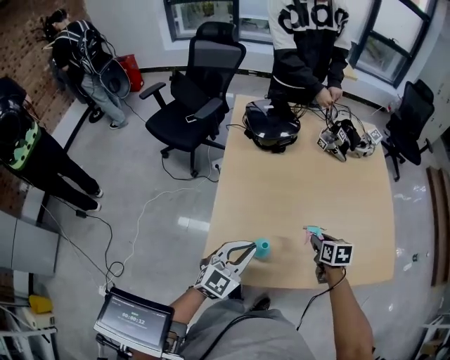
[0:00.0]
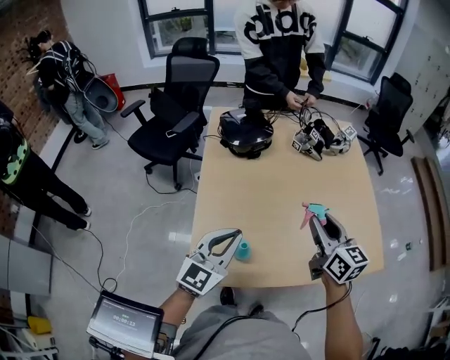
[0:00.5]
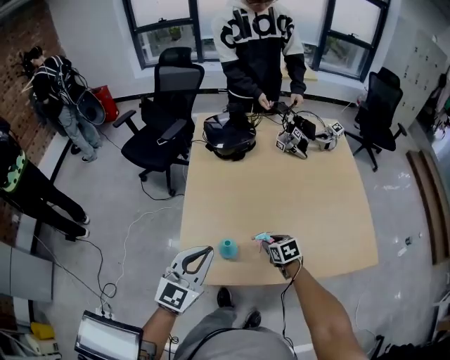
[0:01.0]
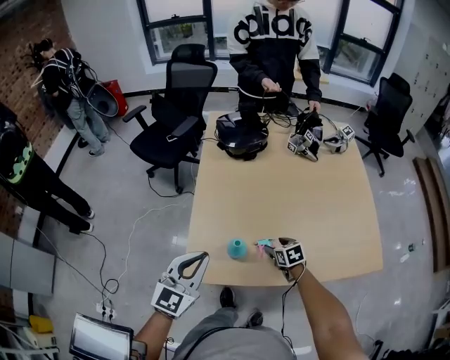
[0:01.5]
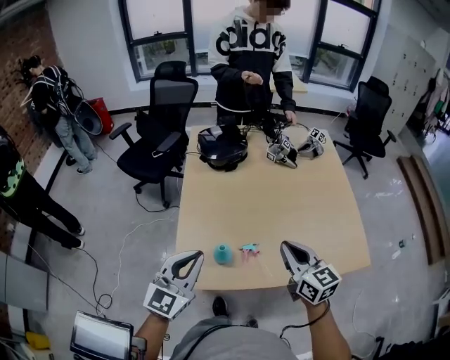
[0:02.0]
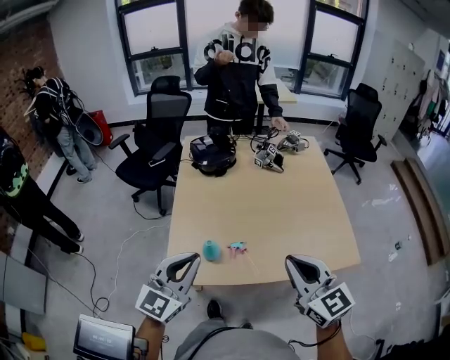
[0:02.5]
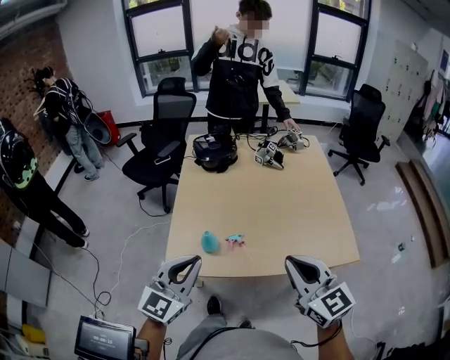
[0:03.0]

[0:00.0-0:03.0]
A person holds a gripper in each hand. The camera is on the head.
0:00.0 to 0:01.5: The left gripper is displaced upward and backward by about 15 cm; the right gripper goes approximately 10 cm to the left and backward, travels upward and back again, about 25 cm each way, and opens up.
0:01.5 to 0:03.0: The left gripper travels backward, to the right and upward by approximately 20 cm. Meanwhile the right gripper moves upward and backward, some 50 cm, points its fingers about 50 degrees further upward, and closes.

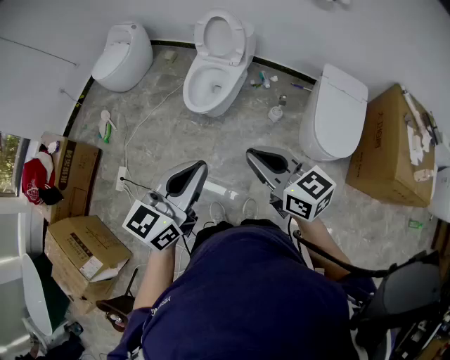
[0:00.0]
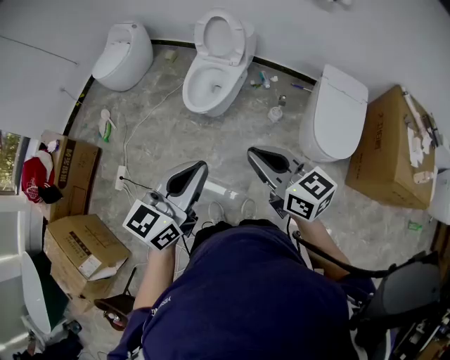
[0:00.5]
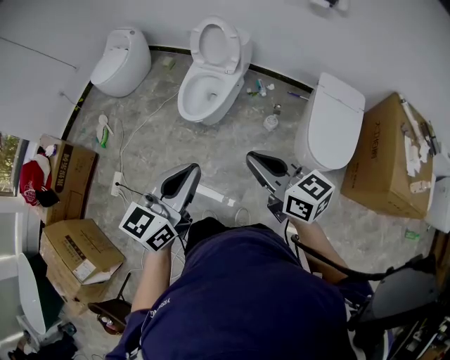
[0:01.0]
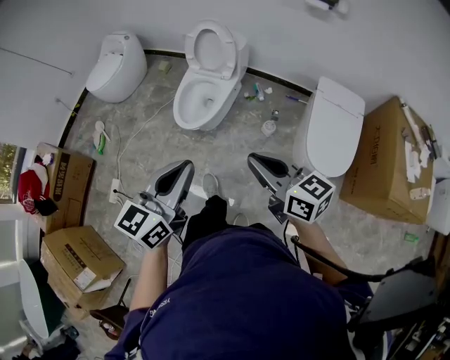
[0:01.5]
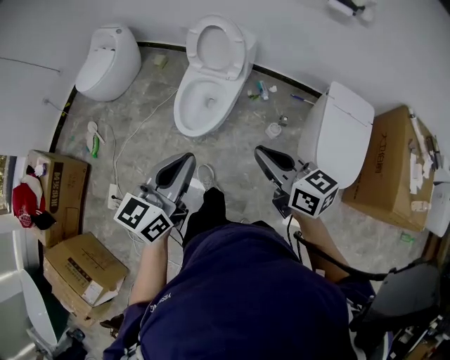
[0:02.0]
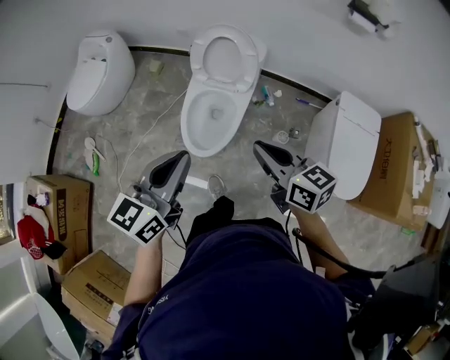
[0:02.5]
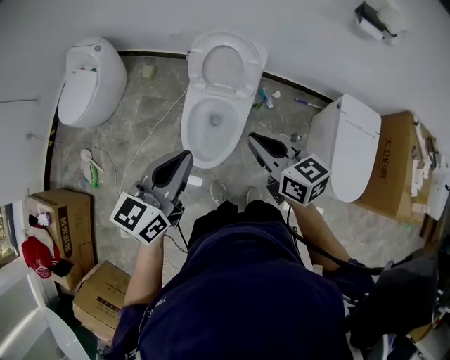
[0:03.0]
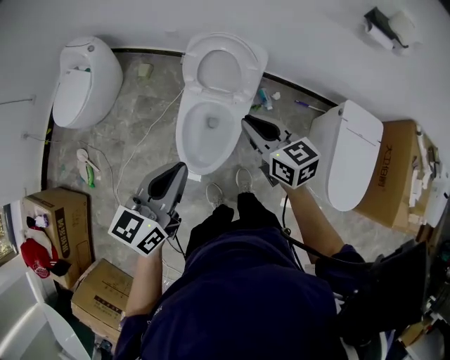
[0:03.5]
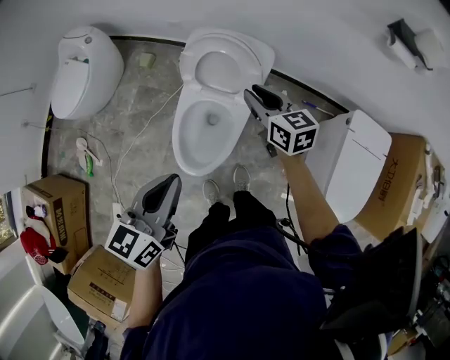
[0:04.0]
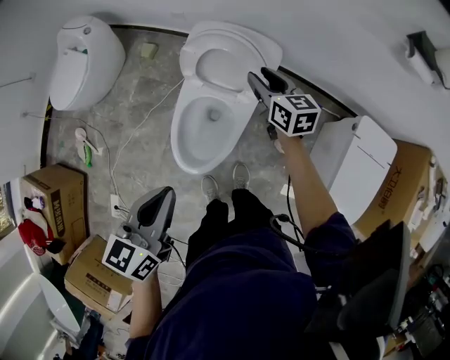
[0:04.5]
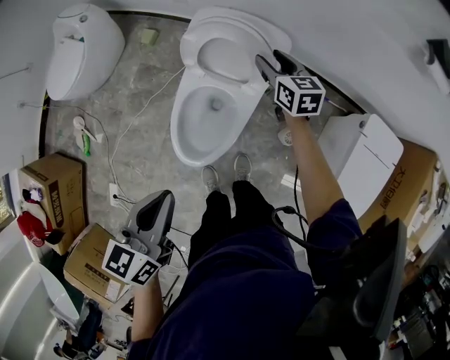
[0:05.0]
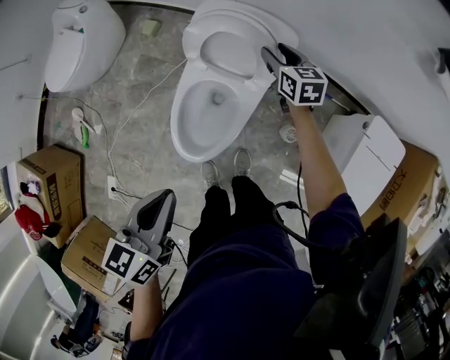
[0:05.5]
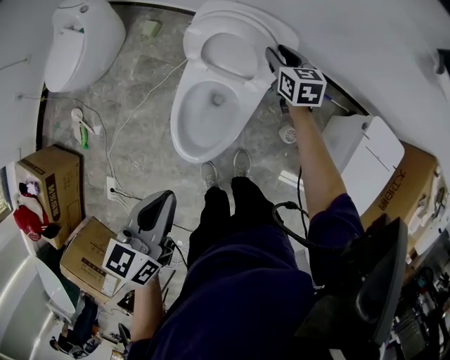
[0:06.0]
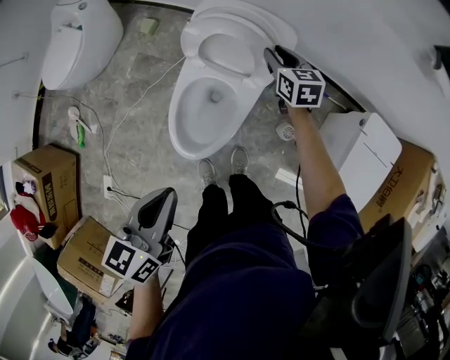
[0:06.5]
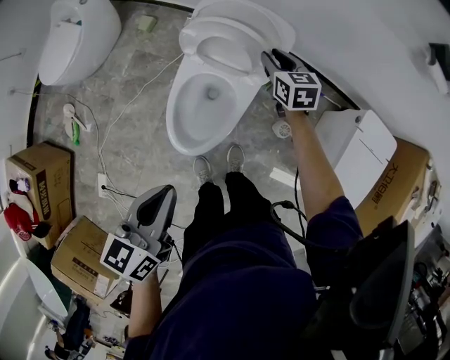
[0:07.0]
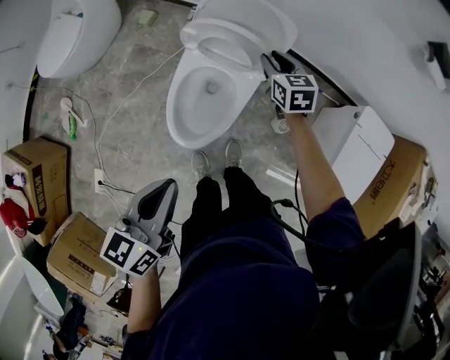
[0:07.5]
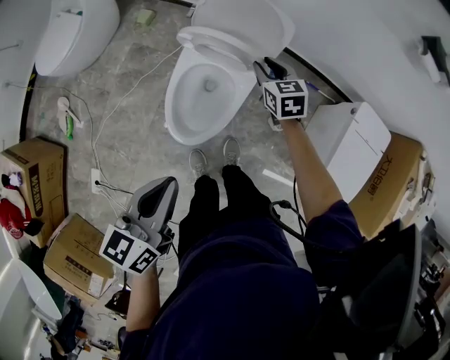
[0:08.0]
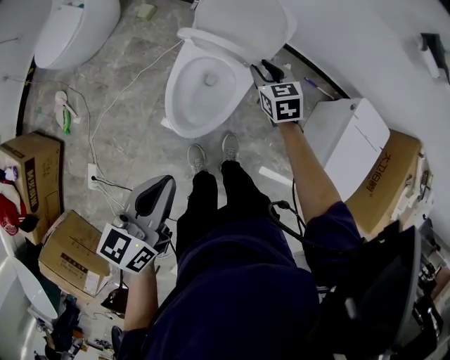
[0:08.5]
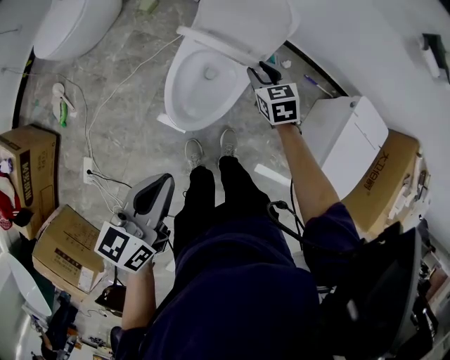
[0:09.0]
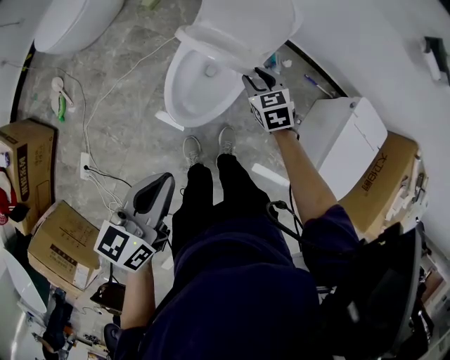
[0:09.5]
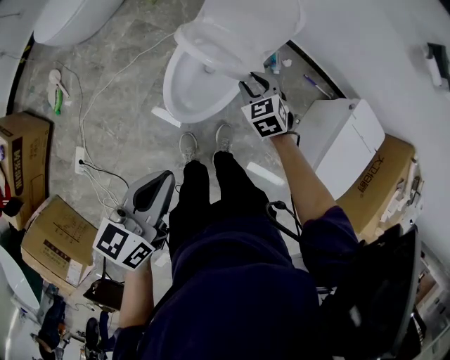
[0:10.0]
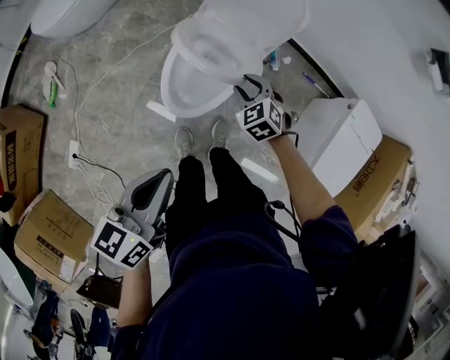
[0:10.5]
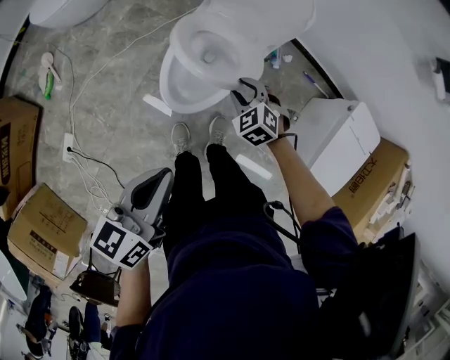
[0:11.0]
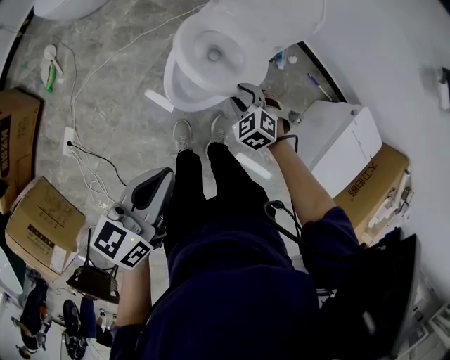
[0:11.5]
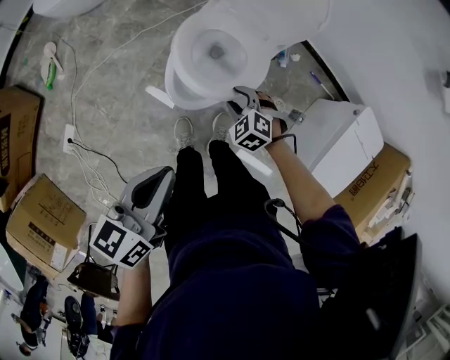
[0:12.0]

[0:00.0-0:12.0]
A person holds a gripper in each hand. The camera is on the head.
0:00.0 to 0:02.0: The grippers both shift forward by about 25 cm.
0:02.0 to 0:04.0: The right gripper moves forward, roughly 50 cm. Meanwhile the left gripper goes approximately 35 cm forward.
0:04.0 to 0:06.0: The right gripper goes roughly 20 cm forward and downward. Meanwhile the left gripper shifts some 5 cm downward.
0:06.0 to 0:08.0: The right gripper moves backward, approximately 15 cm. Meanwhile the left gripper goes approximately 5 cm backward.
0:08.0 to 0:10.0: The left gripper heads backward, covering some 10 cm; the right gripper shifts some 15 cm backward, and rotates some 30 degrees.
0:10.0 to 0:12.0: The right gripper heads backward, downward and to the left, covering about 15 cm, and rotates approximately 30 degrees.

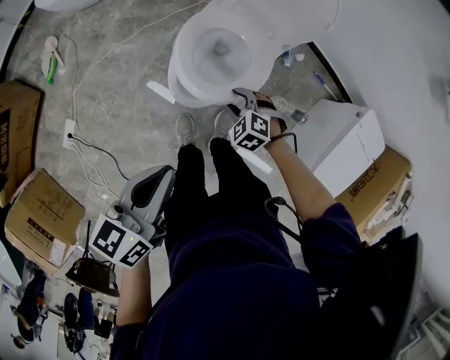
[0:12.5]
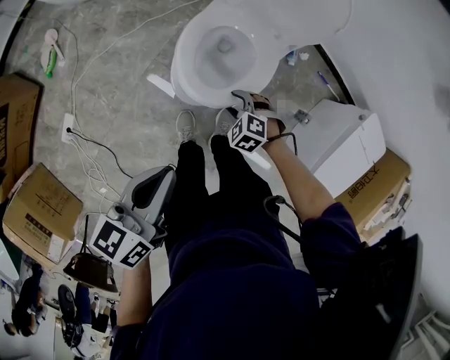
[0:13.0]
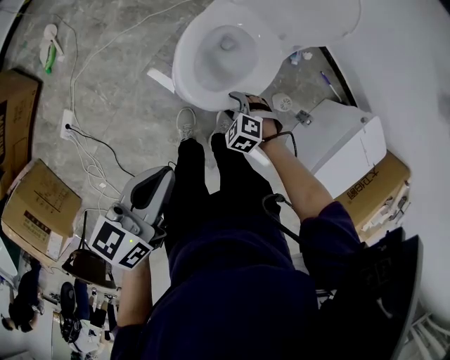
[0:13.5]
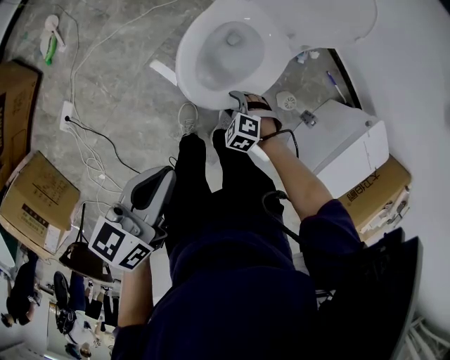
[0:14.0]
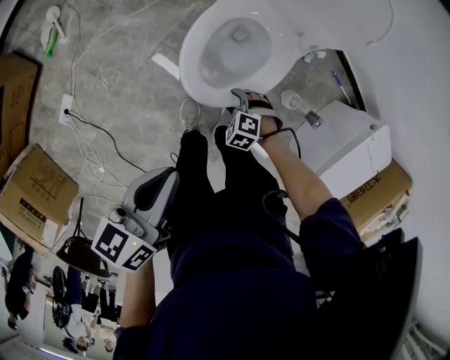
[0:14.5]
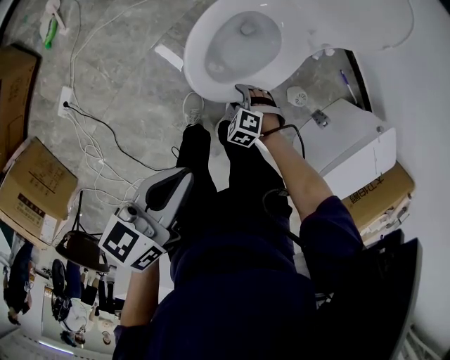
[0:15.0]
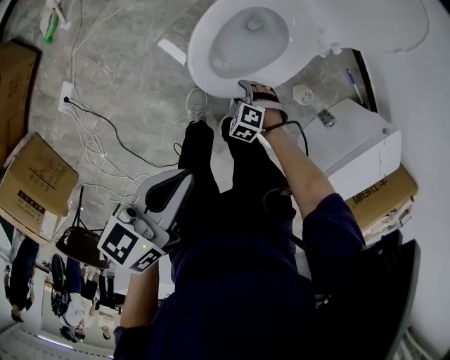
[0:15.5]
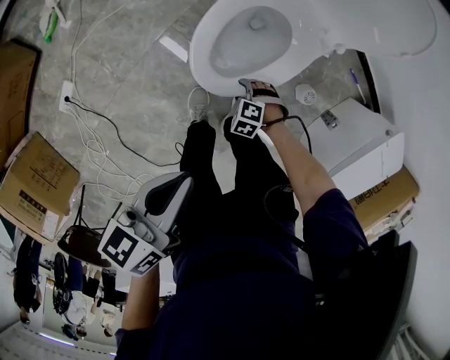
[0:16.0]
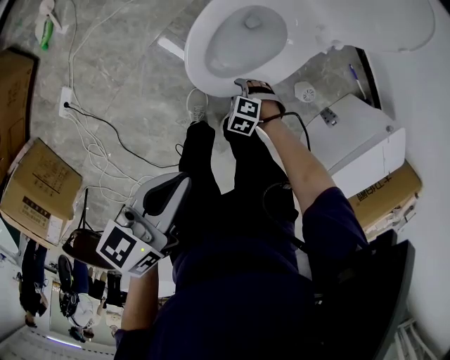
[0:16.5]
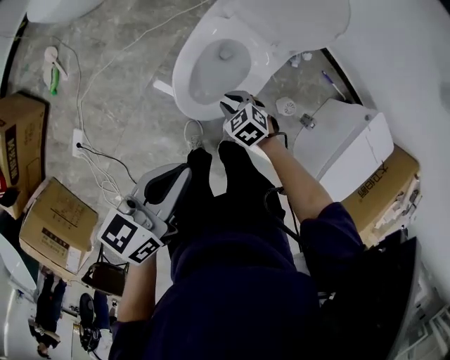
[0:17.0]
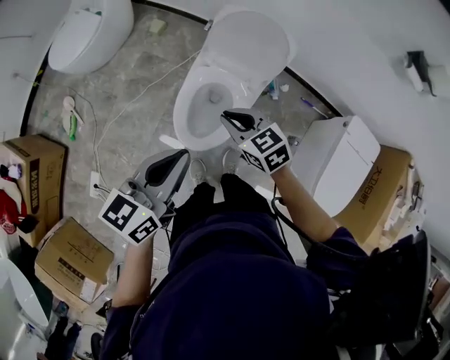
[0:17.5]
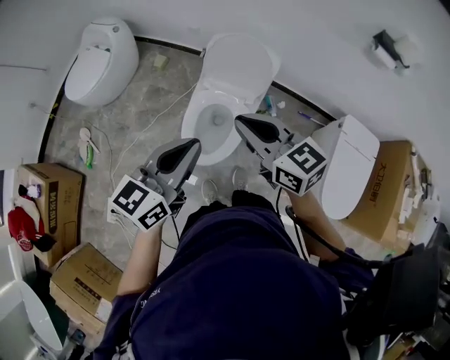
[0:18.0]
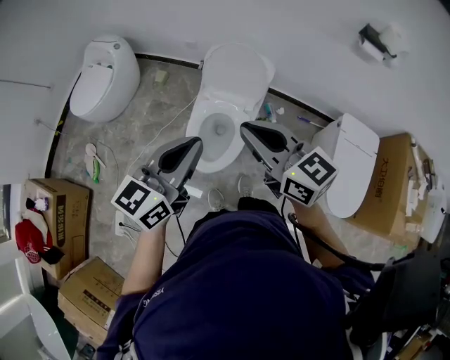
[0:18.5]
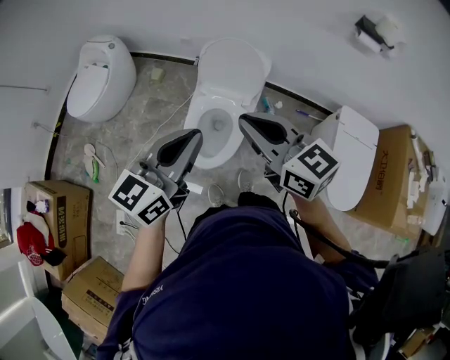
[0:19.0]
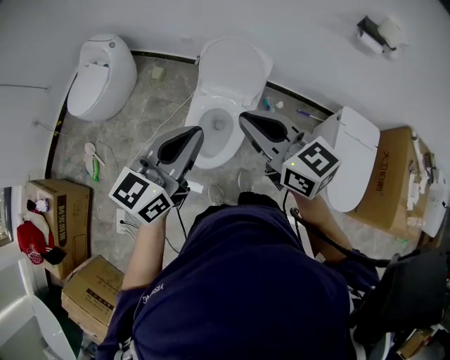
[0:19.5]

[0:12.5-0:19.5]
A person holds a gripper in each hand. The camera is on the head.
0:12.5 to 0:14.5: The right gripper shifts roughly 10 cm downward; the left gripper shifts approximately 5 cm downward.
0:14.5 to 0:16.0: The right gripper travels downward by some 10 cm.
0:16.0 to 0:17.5: The right gripper shifts roughly 50 cm upward, angles its fingers upward, by about 40 degrees, and closes up, while the left gripper is displaced upward by some 20 cm, and turns by roughly 30 degrees.
0:17.5 to 0:19.5: The left gripper shifts some 15 cm upward, and changes its angle by some 20 degrees. The right gripper travels upward by some 25 cm, and turns by about 30 degrees.

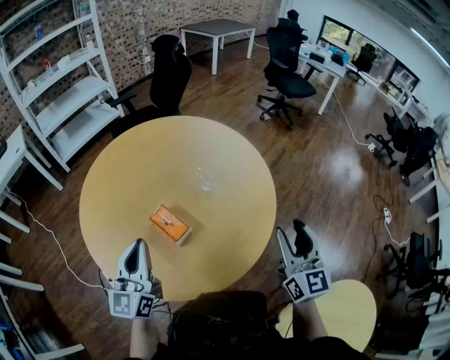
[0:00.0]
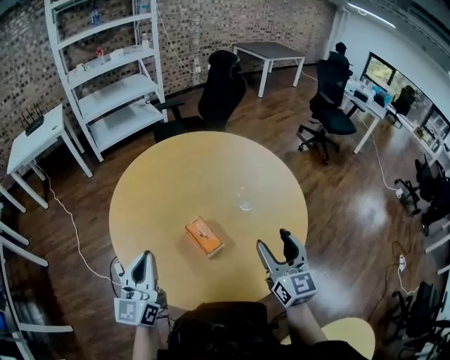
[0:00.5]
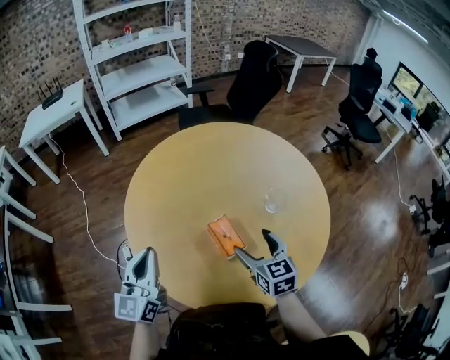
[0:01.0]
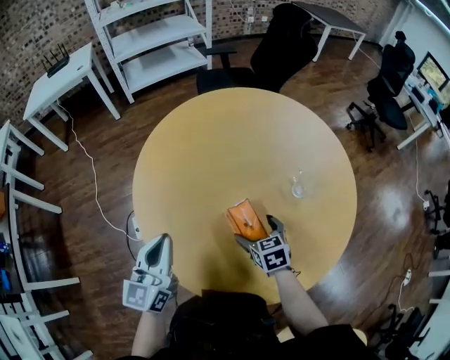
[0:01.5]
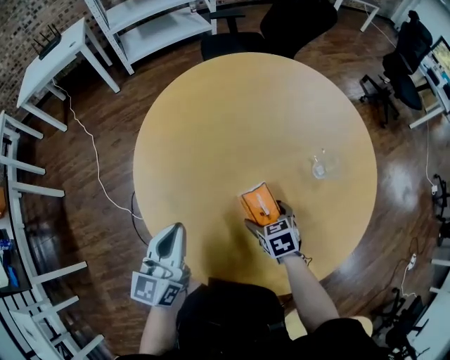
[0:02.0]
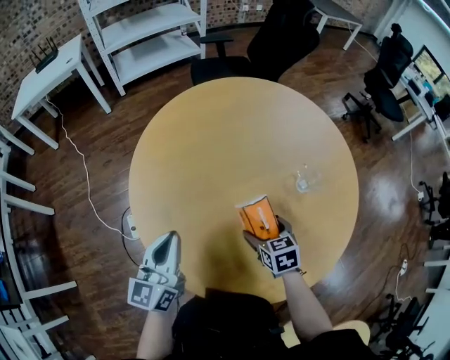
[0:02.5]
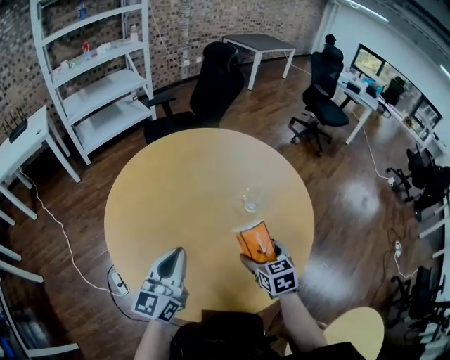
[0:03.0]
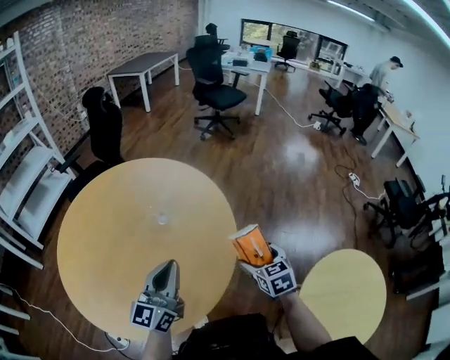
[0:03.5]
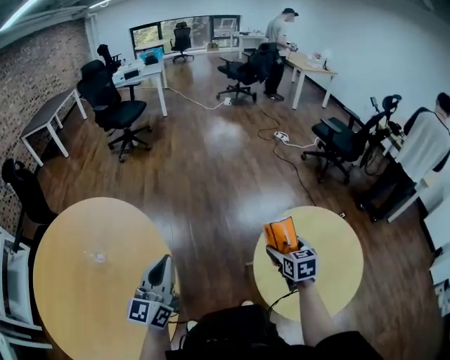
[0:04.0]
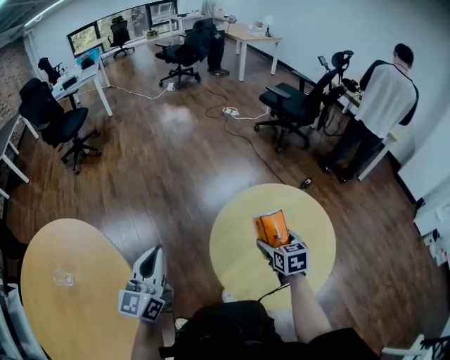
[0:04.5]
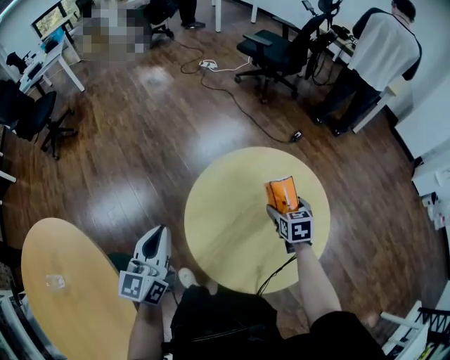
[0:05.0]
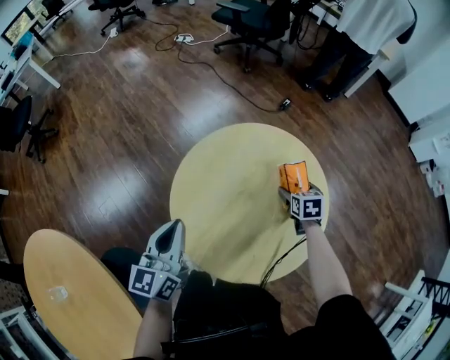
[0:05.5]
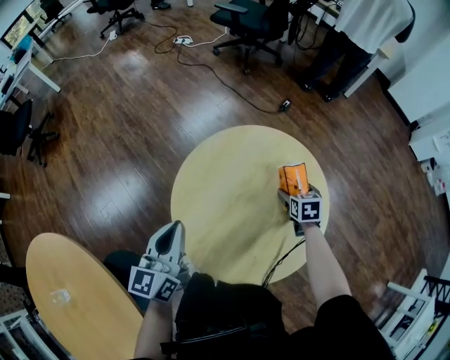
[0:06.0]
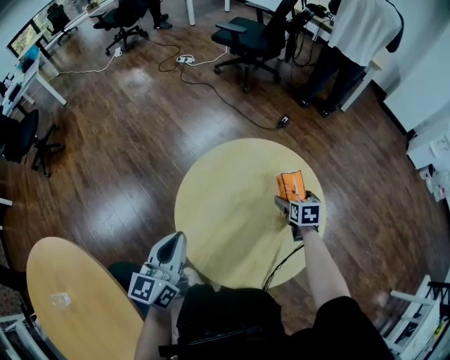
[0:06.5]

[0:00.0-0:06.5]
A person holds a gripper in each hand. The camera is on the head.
0:00.0 to 0:02.0: The left gripper moves to the left, downward and forward, about 20 cm, and changes its angle by roughly 20 degrees, while the right gripper moves downward, to the left and forward, some 50 cm, angles its fingers downward, by approximately 60 degrees, and opens.
0:02.0 to 0:04.5: The pair of grippers is taken approximately 70 cm. The left gripper swivels some 90 degrees. The right gripper rotates approximately 110 degrees.
0:04.5 to 0:06.5: The left gripper shifts about 20 cm to the right, forward and downward, and changes its angle by some 30 degrees, while the right gripper shifts approximately 25 cm to the right and downward, and swivels roughly 30 degrees.
